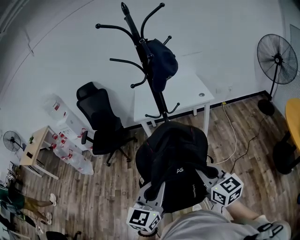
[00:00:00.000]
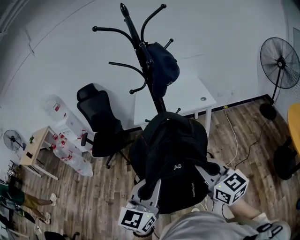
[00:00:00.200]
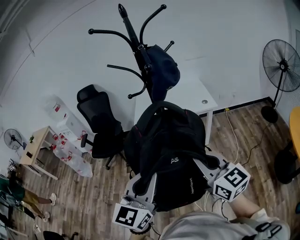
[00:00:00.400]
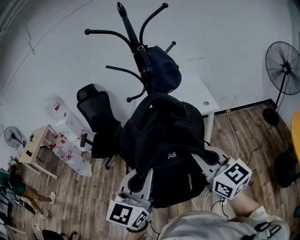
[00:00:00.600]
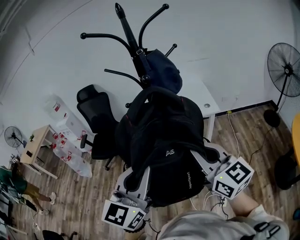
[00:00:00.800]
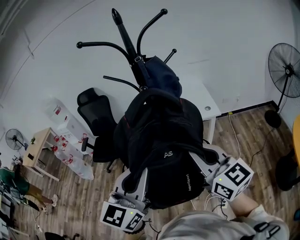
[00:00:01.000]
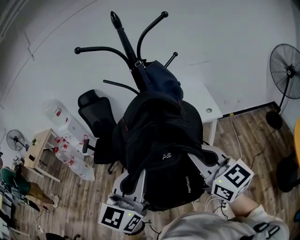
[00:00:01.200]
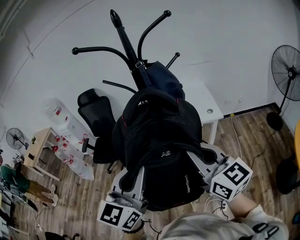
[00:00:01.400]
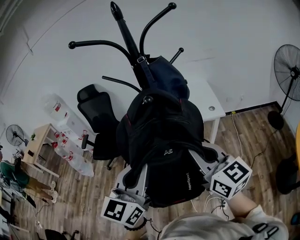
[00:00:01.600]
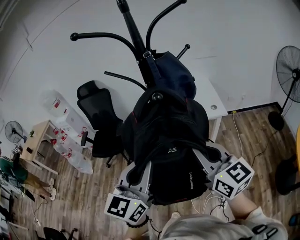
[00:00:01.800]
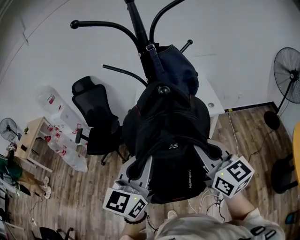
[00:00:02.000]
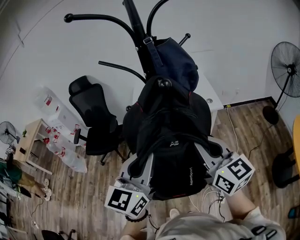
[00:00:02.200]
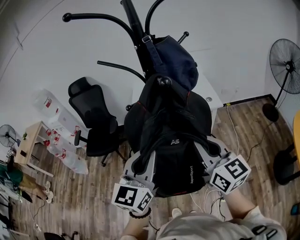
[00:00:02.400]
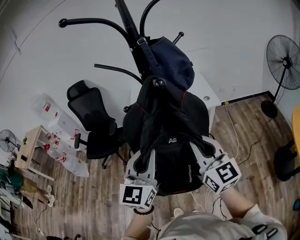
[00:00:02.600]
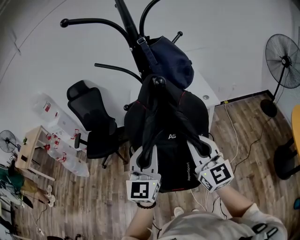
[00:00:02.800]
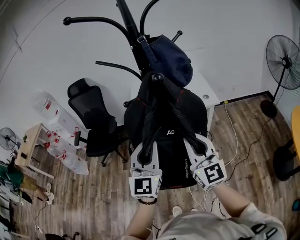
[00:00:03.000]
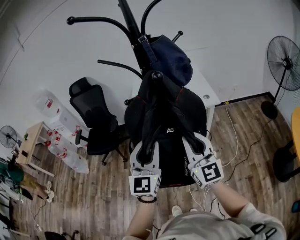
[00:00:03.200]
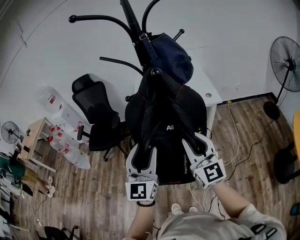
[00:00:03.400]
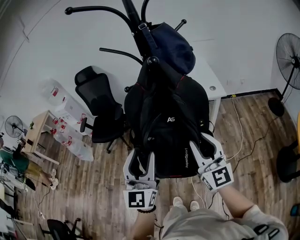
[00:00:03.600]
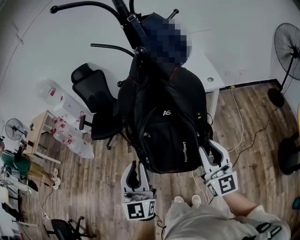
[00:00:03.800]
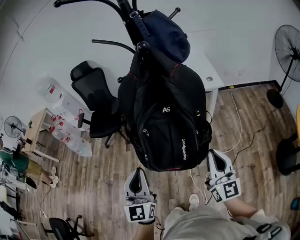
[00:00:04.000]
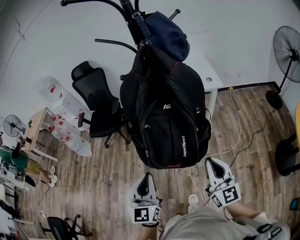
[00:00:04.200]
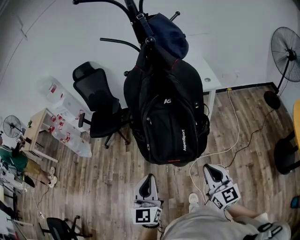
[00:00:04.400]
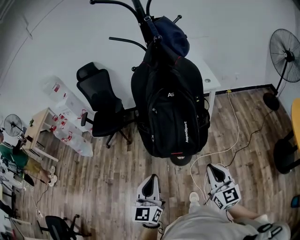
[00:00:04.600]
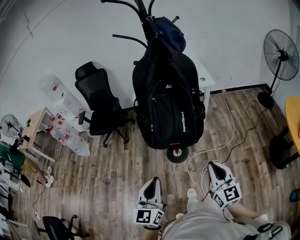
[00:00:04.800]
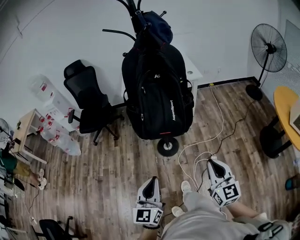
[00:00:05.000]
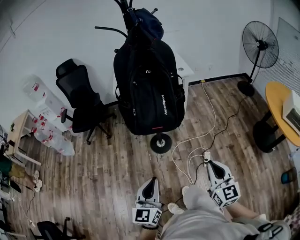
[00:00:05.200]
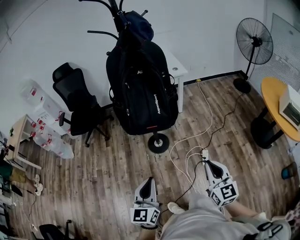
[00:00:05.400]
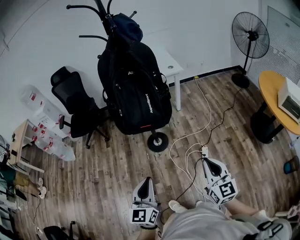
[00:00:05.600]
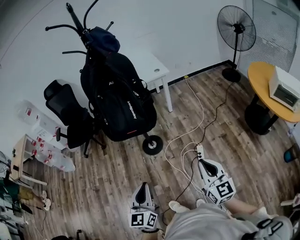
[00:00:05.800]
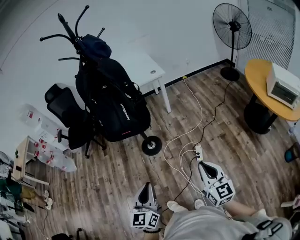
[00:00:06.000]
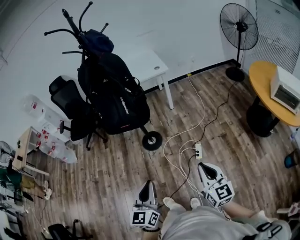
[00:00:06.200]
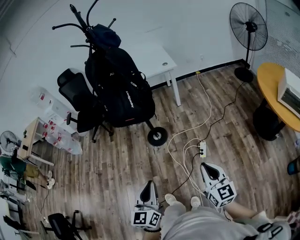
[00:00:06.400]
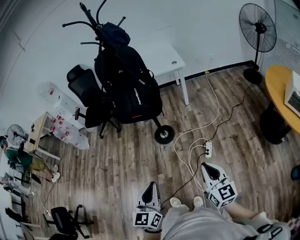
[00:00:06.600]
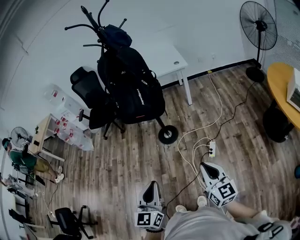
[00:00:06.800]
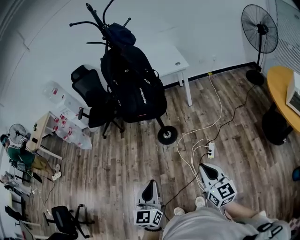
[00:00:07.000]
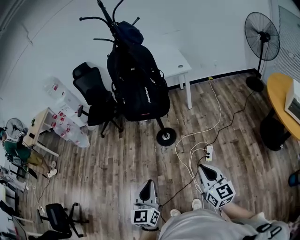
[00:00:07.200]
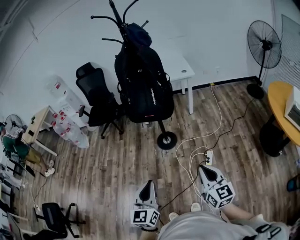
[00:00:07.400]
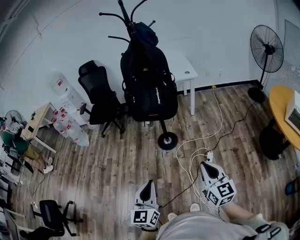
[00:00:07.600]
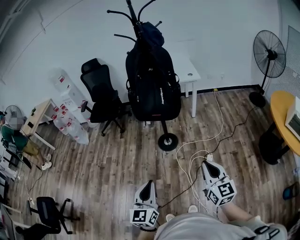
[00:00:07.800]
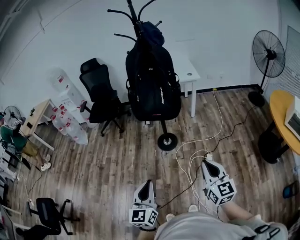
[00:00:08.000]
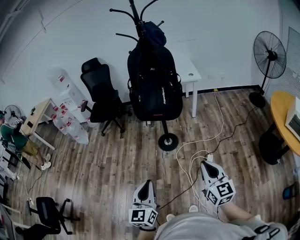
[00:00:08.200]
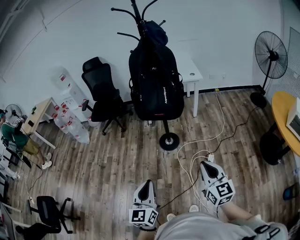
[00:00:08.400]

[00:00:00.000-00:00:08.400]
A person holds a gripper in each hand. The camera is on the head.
00:00:00.000 to 00:00:01.400: The two grippers go some 25 cm forward and upward.
00:00:01.400 to 00:00:02.800: The grippers both shift downward and forward by approximately 15 cm.
00:00:02.800 to 00:00:04.200: The two grippers go some 20 cm backward and downward. The left gripper opens, then closes once more. Meanwhile the right gripper opens and closes again.
00:00:04.200 to 00:00:05.600: Both grippers travel together backward, roughly 30 cm.
00:00:05.600 to 00:00:07.000: The grippers both shift backward and to the right by roughly 15 cm.
00:00:07.000 to 00:00:08.400: Both grippers travel together to the left, roughly 10 cm.

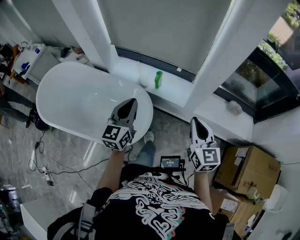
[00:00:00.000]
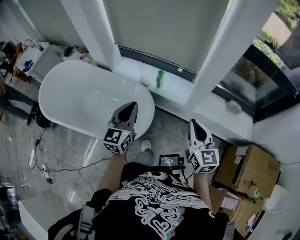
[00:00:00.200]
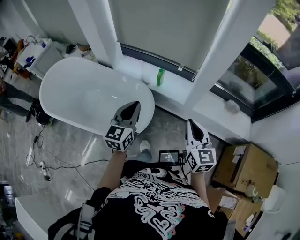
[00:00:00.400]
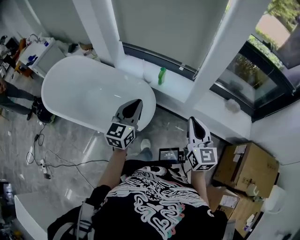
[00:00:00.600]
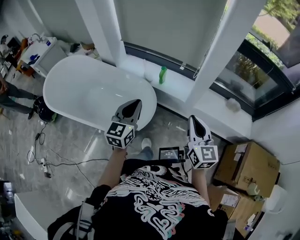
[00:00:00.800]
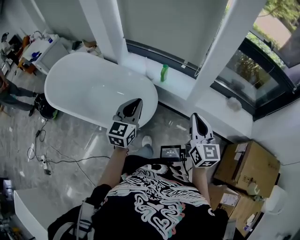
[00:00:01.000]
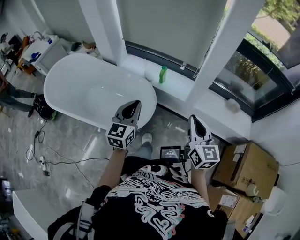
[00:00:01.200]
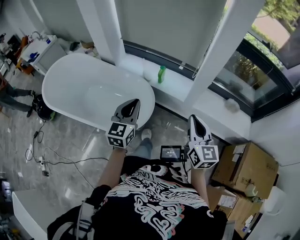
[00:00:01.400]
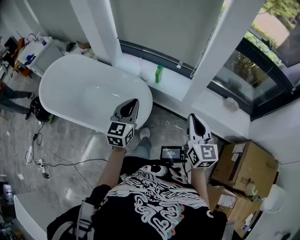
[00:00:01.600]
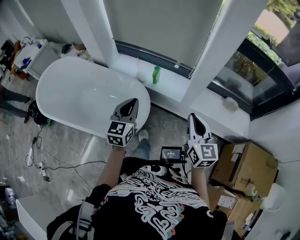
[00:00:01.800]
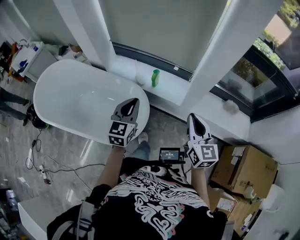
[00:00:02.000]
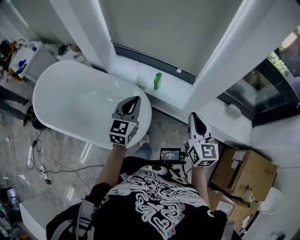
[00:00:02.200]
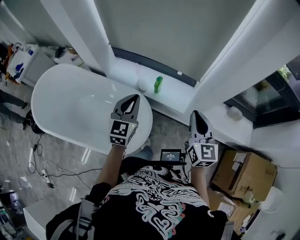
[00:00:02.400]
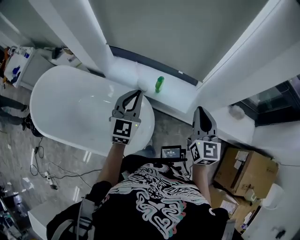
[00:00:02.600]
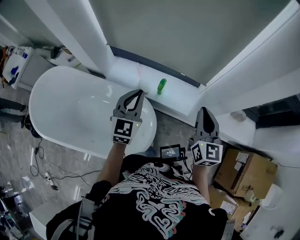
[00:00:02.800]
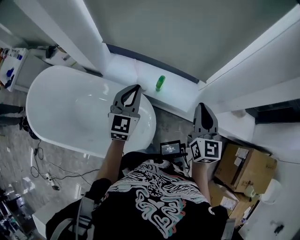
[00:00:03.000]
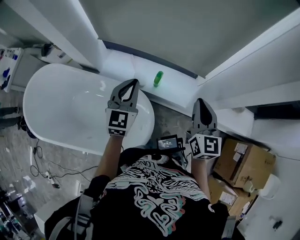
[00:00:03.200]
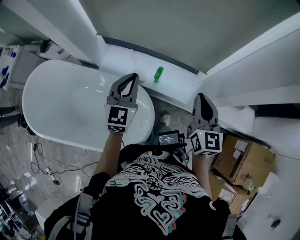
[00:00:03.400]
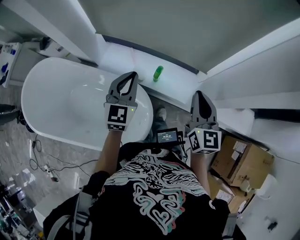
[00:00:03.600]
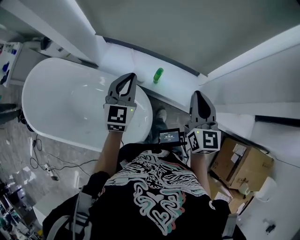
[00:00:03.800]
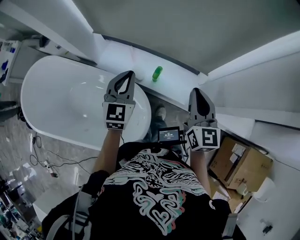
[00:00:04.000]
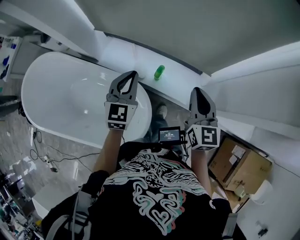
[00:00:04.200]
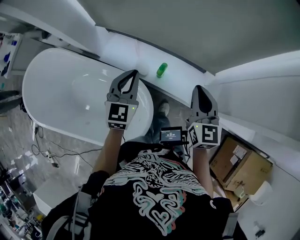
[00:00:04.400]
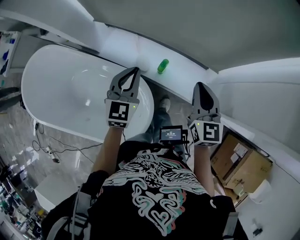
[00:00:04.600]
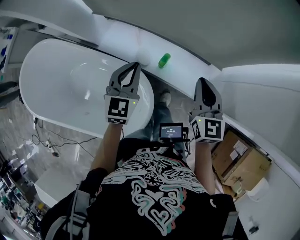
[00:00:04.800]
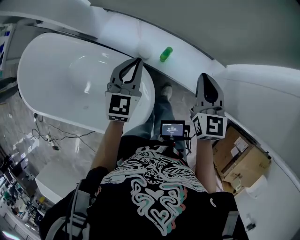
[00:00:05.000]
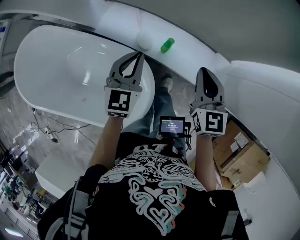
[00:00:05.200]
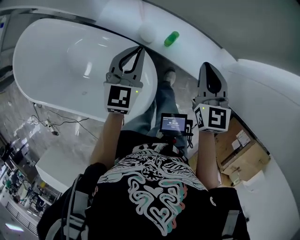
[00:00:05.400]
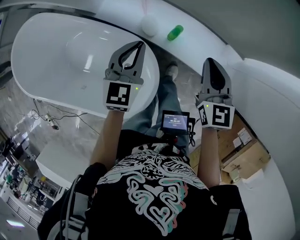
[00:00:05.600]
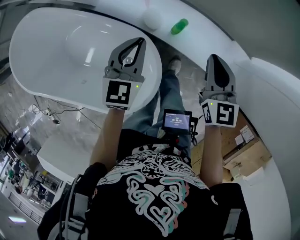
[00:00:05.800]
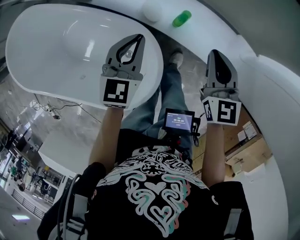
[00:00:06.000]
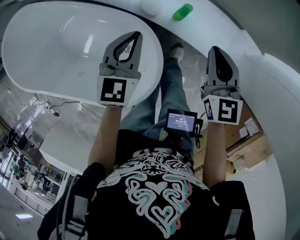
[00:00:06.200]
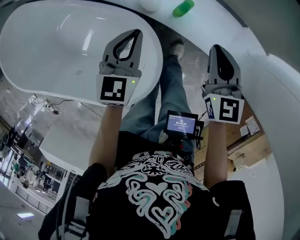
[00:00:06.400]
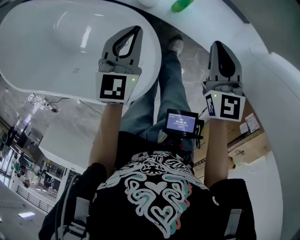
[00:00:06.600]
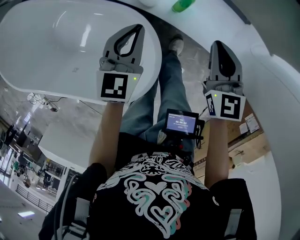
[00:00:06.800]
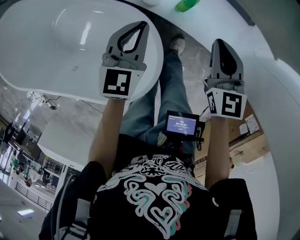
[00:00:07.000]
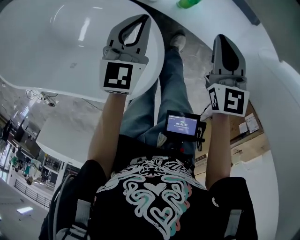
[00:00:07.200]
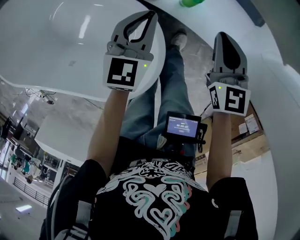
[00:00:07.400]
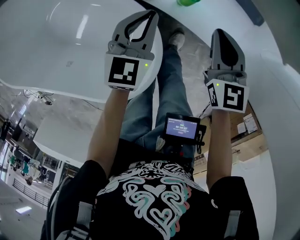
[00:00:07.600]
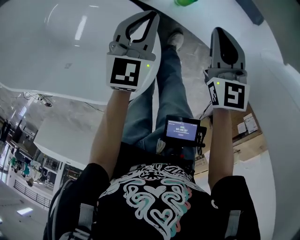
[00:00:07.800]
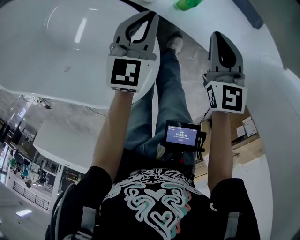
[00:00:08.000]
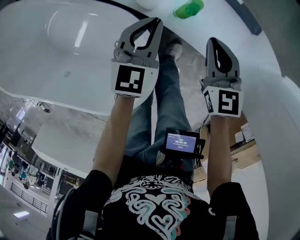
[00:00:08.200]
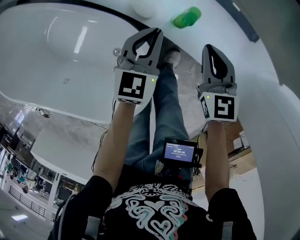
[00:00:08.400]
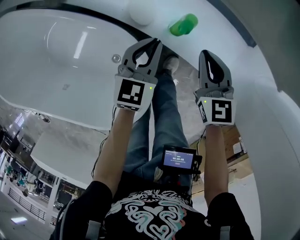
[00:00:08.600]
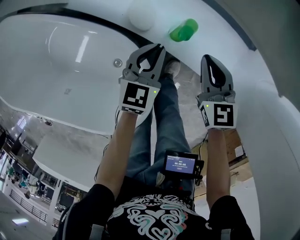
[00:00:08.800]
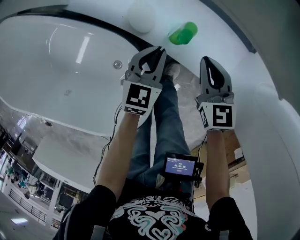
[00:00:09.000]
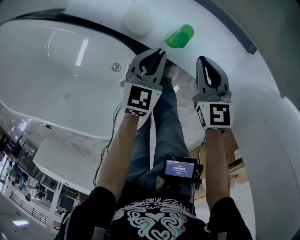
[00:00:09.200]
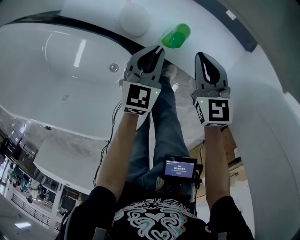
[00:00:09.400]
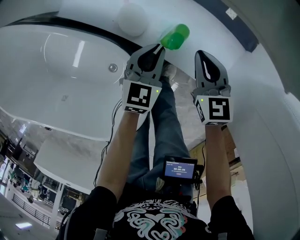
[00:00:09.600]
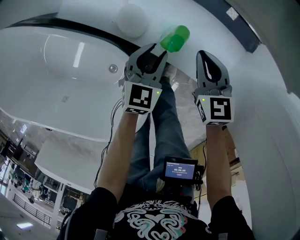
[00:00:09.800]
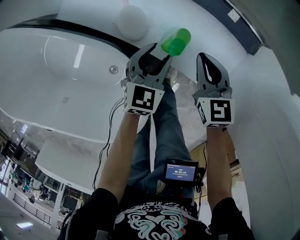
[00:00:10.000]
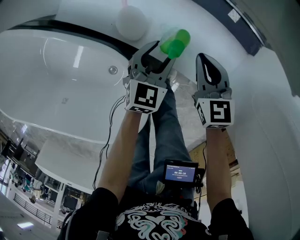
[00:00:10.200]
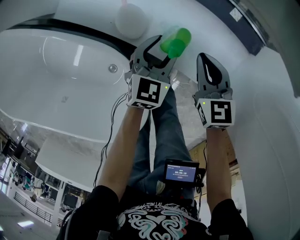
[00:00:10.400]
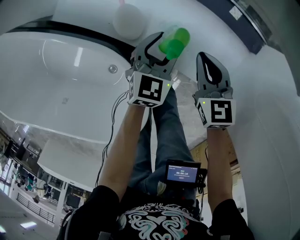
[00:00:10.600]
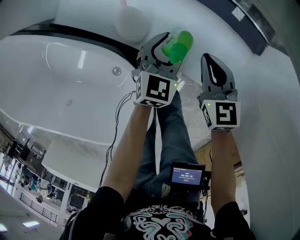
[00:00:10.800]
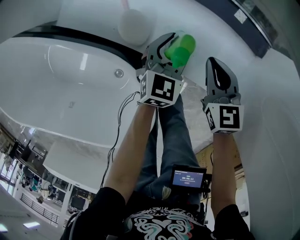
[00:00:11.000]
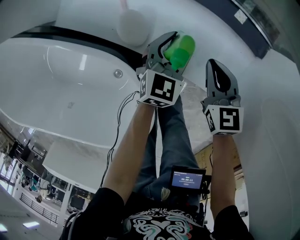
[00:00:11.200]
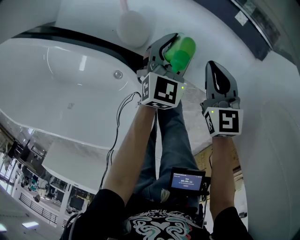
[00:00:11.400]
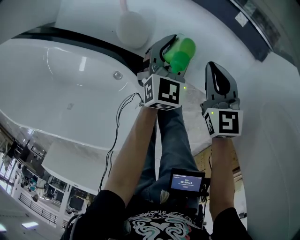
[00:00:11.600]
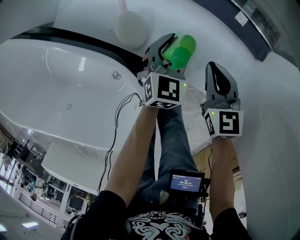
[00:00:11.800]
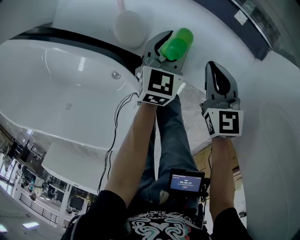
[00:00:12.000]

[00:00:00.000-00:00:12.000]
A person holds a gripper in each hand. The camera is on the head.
00:00:00.000 to 00:00:01.600: The two grippers go approximately 10 cm backward.
00:00:01.600 to 00:00:03.000: Both grippers move forward, approximately 30 cm.
00:00:03.000 to 00:00:04.400: Both grippers move forward and downward, roughly 15 cm.
00:00:04.400 to 00:00:06.000: Both grippers move downward, approximately 20 cm.
00:00:06.000 to 00:00:07.600: Both grippers travel together downward, approximately 10 cm.
00:00:07.600 to 00:00:09.000: Both grippers travel together downward, roughly 10 cm.
00:00:09.000 to 00:00:10.400: The right gripper heads downward, covering some 5 cm. Meanwhile the left gripper is displaced to the right, downward and forward by approximately 10 cm, and opens.
00:00:10.400 to 00:00:12.000: The left gripper moves approximately 5 cm.

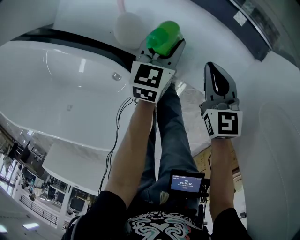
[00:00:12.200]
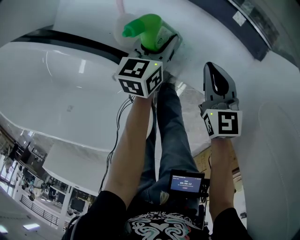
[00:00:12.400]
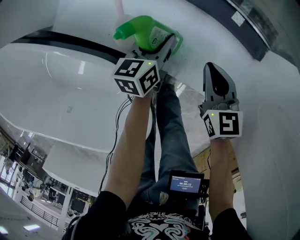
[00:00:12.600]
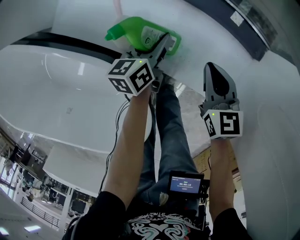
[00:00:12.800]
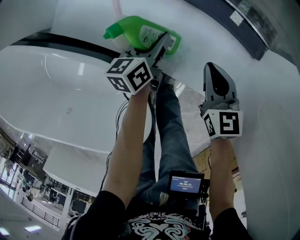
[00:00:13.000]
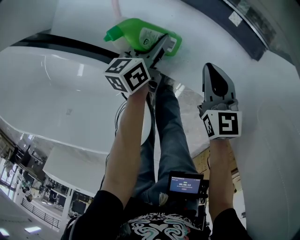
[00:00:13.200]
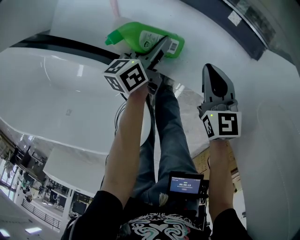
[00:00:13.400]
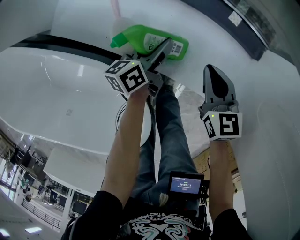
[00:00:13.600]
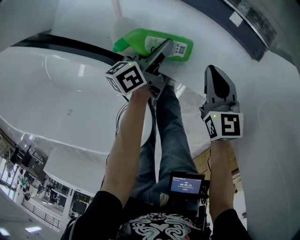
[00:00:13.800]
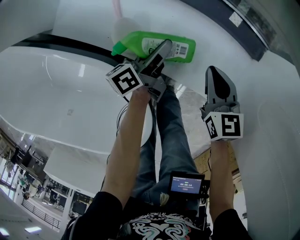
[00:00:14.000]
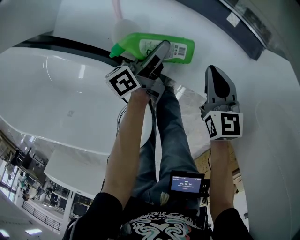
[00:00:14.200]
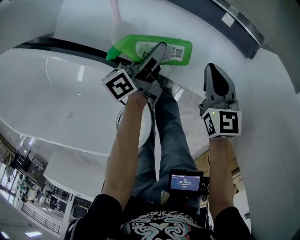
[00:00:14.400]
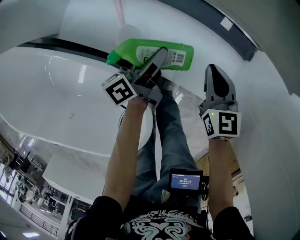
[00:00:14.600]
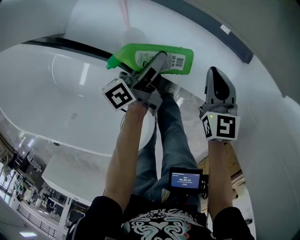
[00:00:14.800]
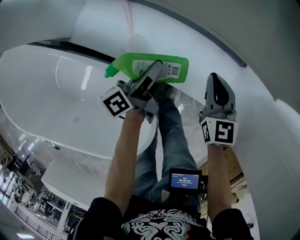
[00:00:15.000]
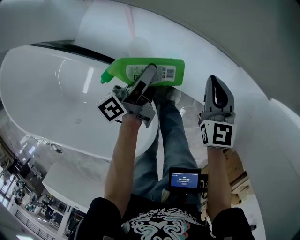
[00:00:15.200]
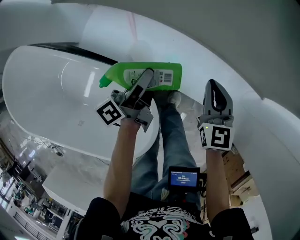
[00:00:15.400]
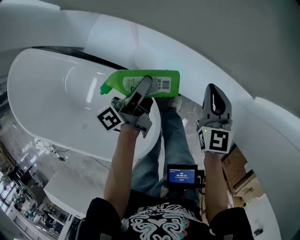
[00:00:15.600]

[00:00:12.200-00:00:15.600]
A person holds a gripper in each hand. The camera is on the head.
00:00:12.200 to 00:00:13.800: The left gripper twists roughly 40 degrees counterclockwise, seen from behind.
00:00:13.800 to 00:00:15.600: The right gripper heads upward, covering roughly 20 cm, and swivels roughly 20 degrees. The left gripper shifts about 25 cm upward and backward, and turns by some 20 degrees.
